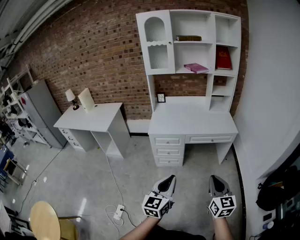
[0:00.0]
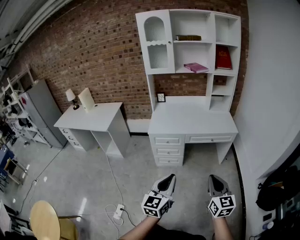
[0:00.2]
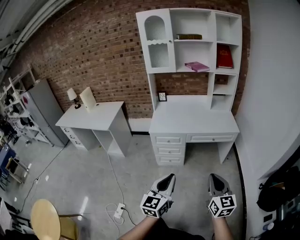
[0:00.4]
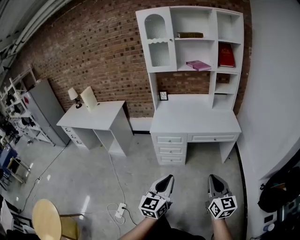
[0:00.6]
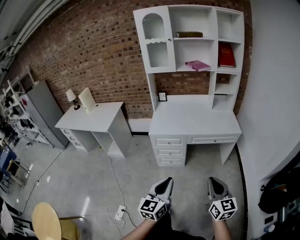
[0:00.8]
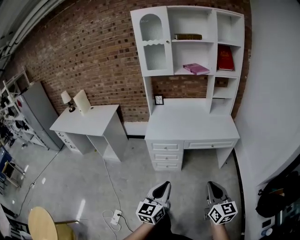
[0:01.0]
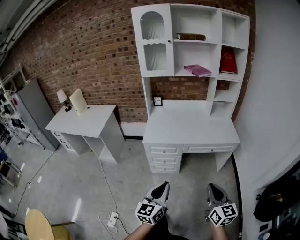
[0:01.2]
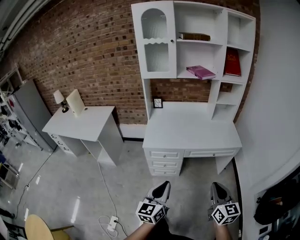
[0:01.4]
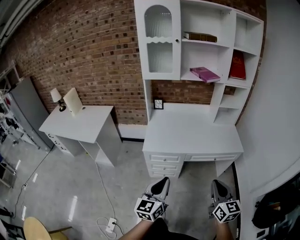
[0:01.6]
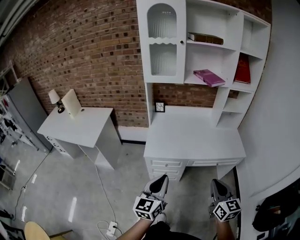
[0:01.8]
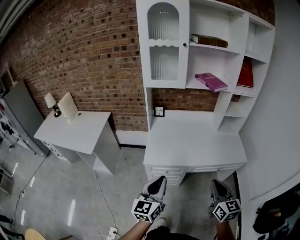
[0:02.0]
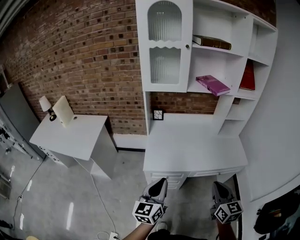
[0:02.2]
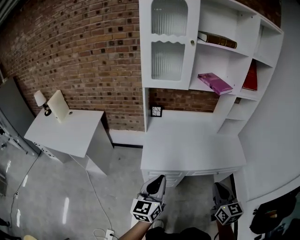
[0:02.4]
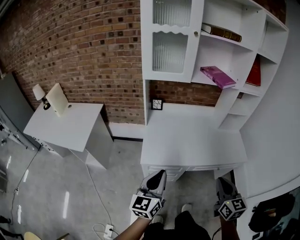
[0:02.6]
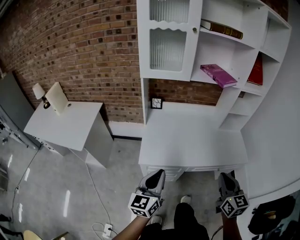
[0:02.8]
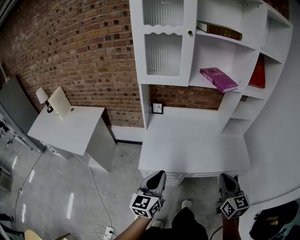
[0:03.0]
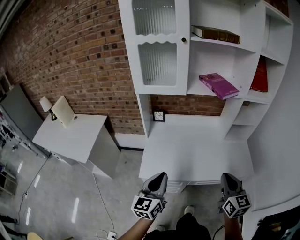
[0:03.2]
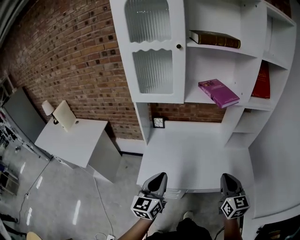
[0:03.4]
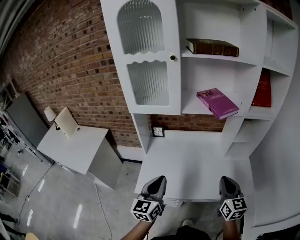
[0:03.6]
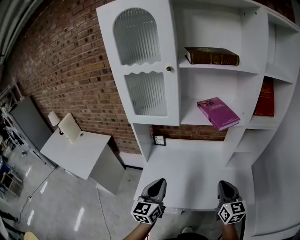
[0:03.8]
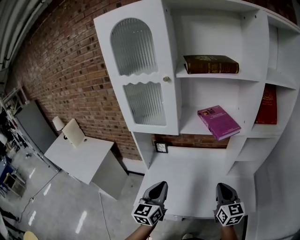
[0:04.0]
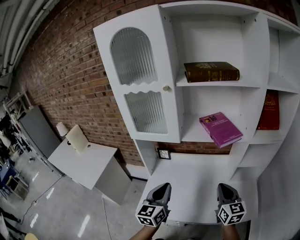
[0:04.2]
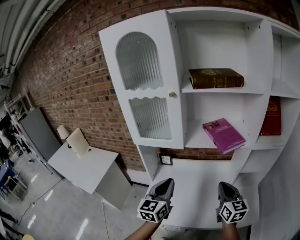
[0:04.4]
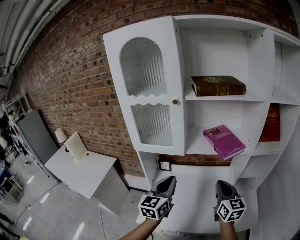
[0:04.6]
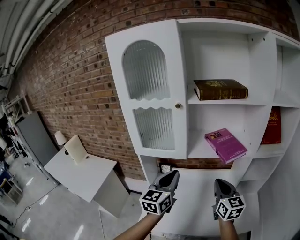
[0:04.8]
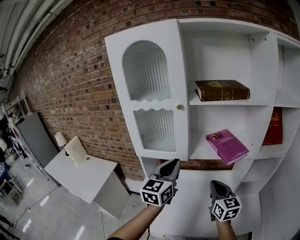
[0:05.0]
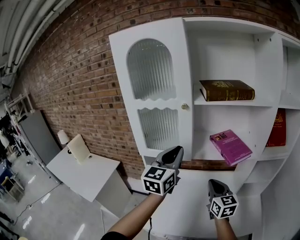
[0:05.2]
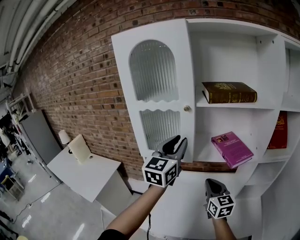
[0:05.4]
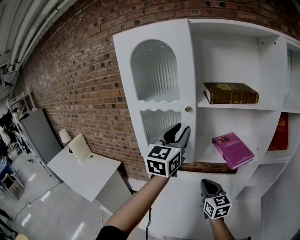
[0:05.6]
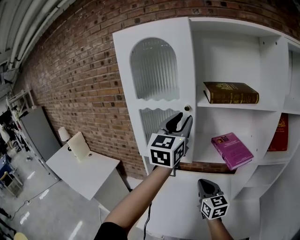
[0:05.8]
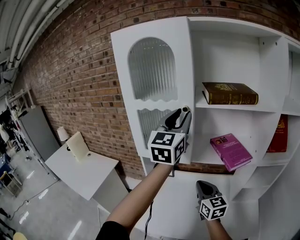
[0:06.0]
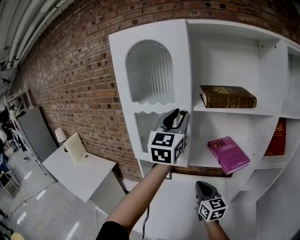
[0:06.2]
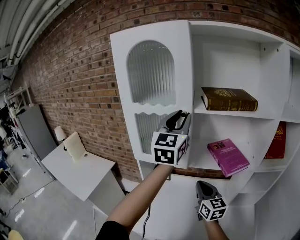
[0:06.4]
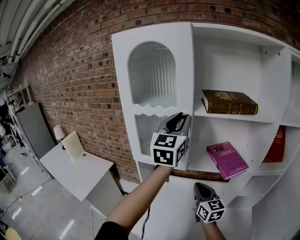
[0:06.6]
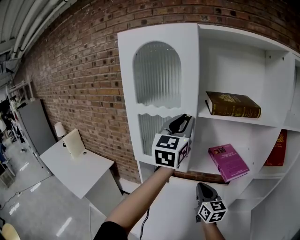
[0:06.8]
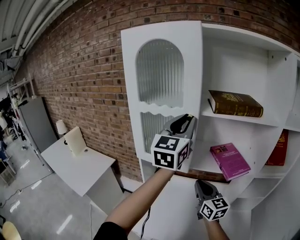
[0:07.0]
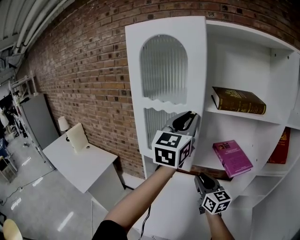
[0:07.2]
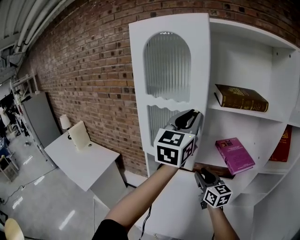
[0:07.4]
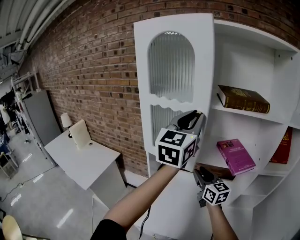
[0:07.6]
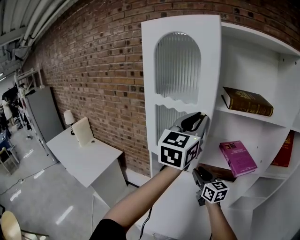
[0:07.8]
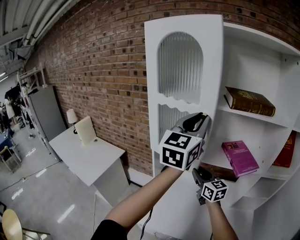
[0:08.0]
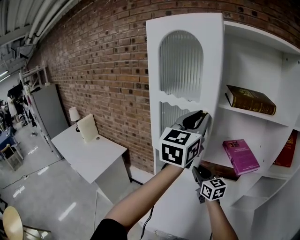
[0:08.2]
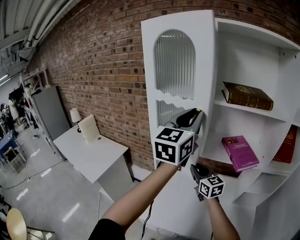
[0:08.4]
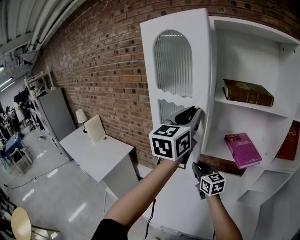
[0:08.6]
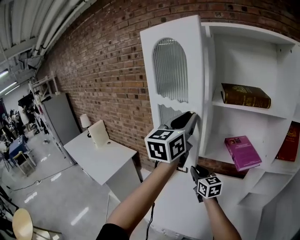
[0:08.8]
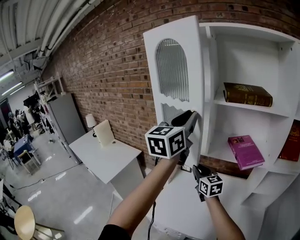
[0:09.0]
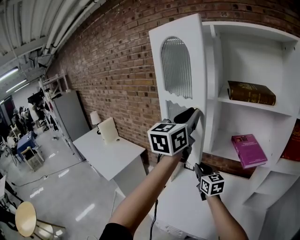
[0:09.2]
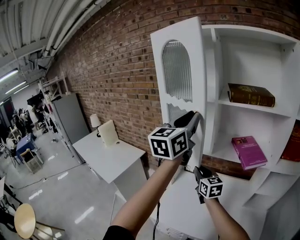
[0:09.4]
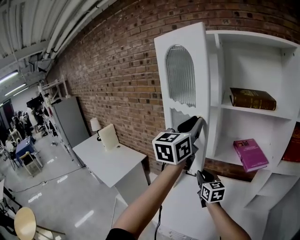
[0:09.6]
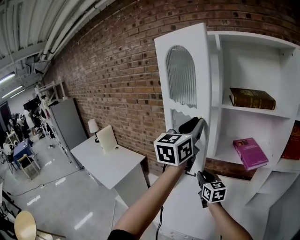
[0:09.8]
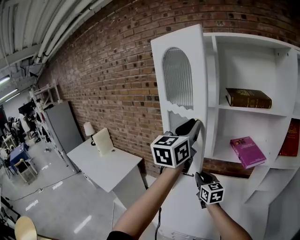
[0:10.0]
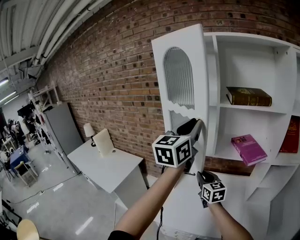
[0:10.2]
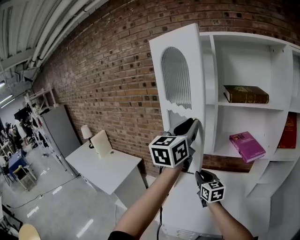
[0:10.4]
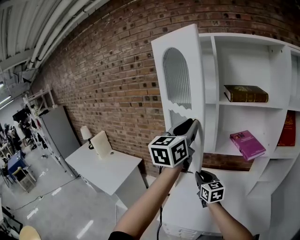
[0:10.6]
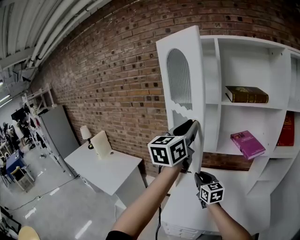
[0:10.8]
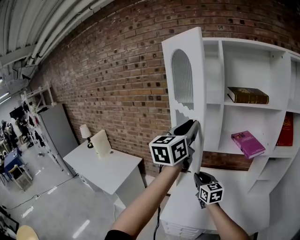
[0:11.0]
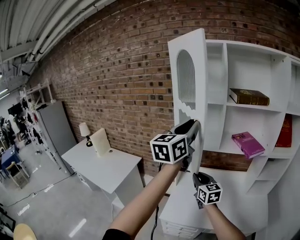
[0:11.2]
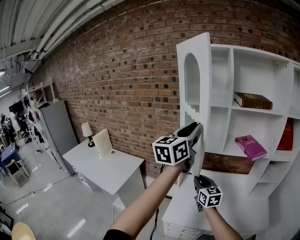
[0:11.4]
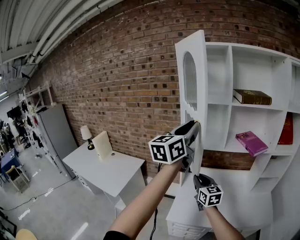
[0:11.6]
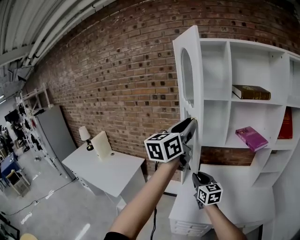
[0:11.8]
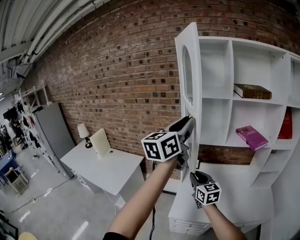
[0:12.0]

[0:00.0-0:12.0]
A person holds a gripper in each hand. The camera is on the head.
0:00.0 to 0:01.6: Both grippers move forward, about 25 cm.
0:01.6 to 0:03.0: Both grippers move forward, about 25 cm.
0:03.0 to 0:04.4: The right gripper shifts roughly 30 cm forward; the left gripper shifts approximately 30 cm forward, upward and to the right.
0:04.4 to 0:06.0: The right gripper goes some 15 cm to the left and forward. Meanwhile the left gripper moves upward and forward, roughly 35 cm, rotates some 20 degrees, and opens up.
0:06.0 to 0:07.6: The right gripper travels forward by roughly 5 cm, and opens its fingers.
0:07.6 to 0:09.0: The right gripper shifts by about 5 cm.
0:09.0 to 0:10.4: The left gripper ends up roughly 5 cm from where it was. Meanwhile the right gripper ends up roughly 5 cm from where it was.
0:10.4 to 0:12.0: Both grippers move to the left and backward, roughly 15 cm.

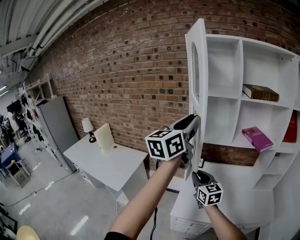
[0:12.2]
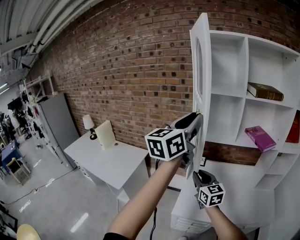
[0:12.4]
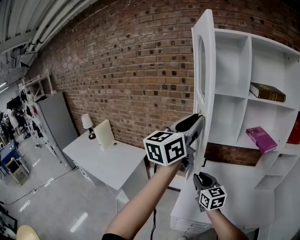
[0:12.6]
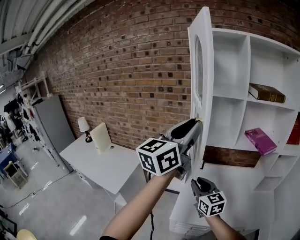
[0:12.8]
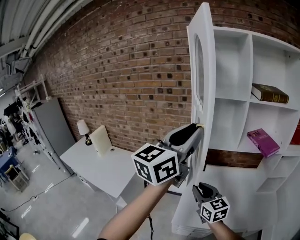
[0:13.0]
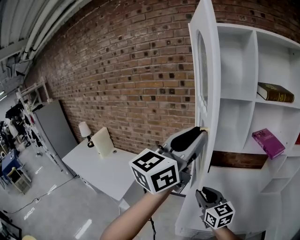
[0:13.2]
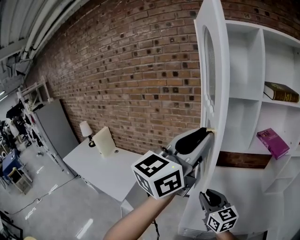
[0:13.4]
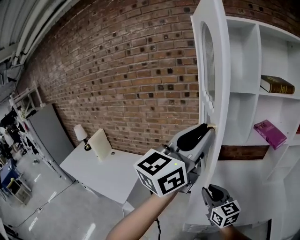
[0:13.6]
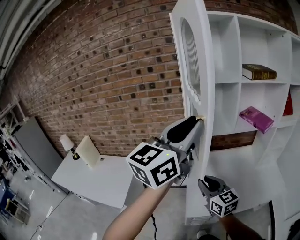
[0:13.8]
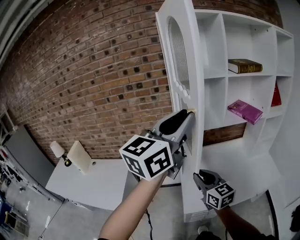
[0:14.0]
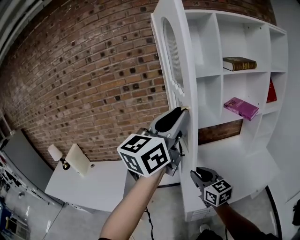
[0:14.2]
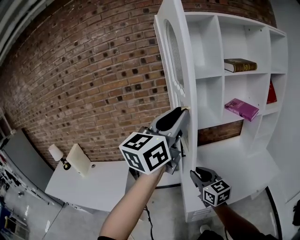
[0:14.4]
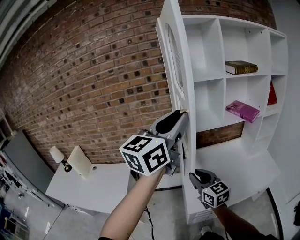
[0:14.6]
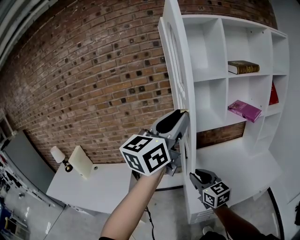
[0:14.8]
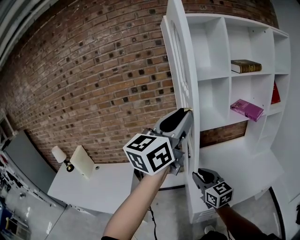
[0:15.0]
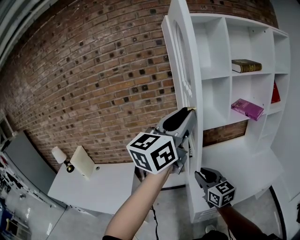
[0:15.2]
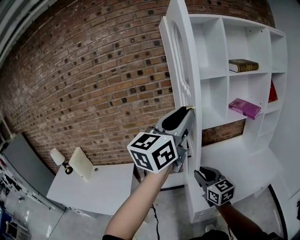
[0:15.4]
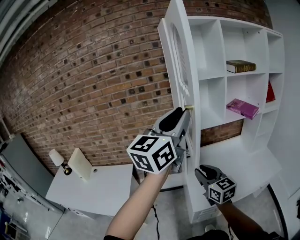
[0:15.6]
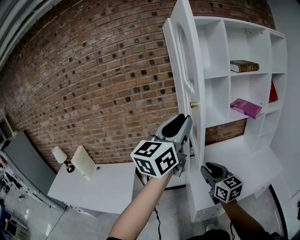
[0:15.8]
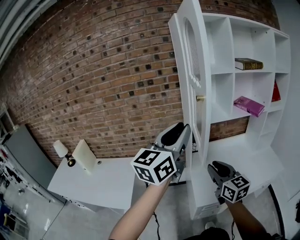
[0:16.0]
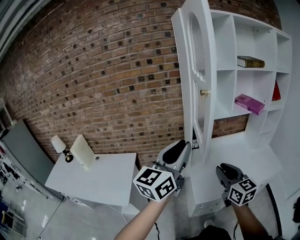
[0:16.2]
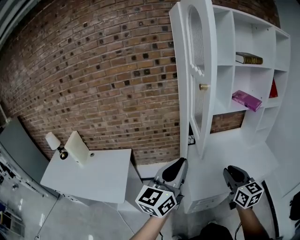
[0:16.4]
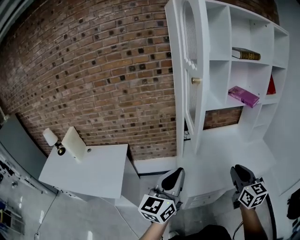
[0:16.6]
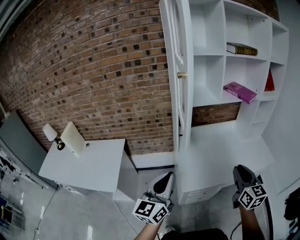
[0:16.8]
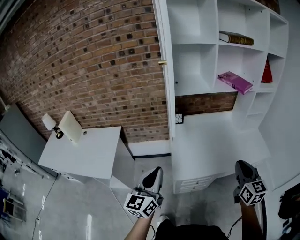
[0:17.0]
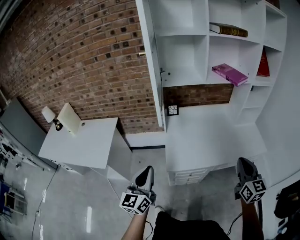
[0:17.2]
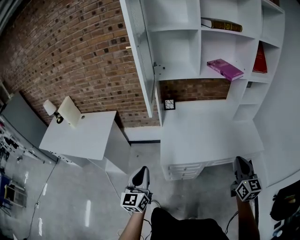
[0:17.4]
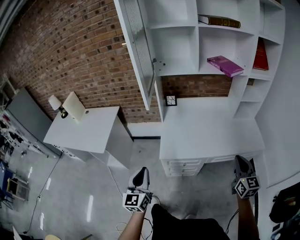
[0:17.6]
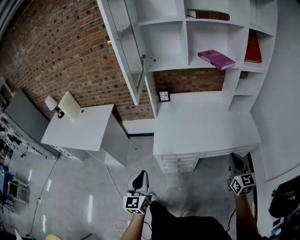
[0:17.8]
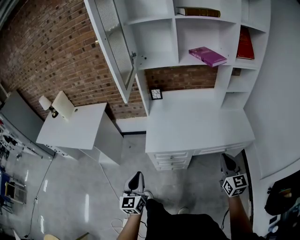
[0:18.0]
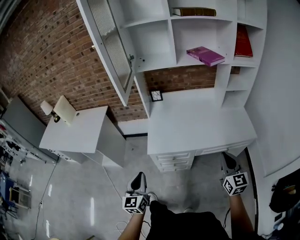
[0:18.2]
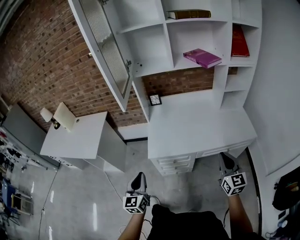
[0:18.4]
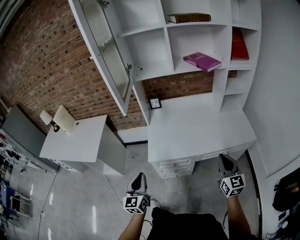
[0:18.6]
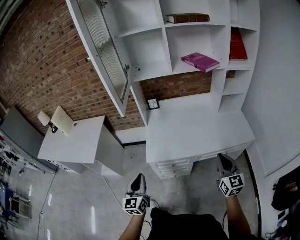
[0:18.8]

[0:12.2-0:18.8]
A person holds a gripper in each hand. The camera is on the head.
0:12.2 to 0:13.8: Both grippers move to the left, about 5 cm.
0:13.8 to 0:15.4: The right gripper ends up roughly 5 cm from where it was.
0:15.4 to 0:17.2: The left gripper moves downward and backward, approximately 40 cm, and swivels approximately 30 degrees. Meanwhile the right gripper goes approximately 35 cm to the right, and closes up.
0:17.2 to 0:18.8: The right gripper moves to the right and downward, about 15 cm. The left gripper moves downward, to the right and backward, about 15 cm.

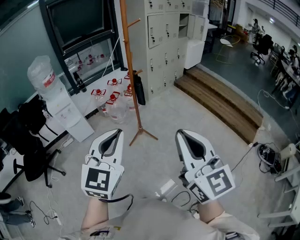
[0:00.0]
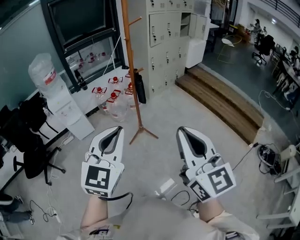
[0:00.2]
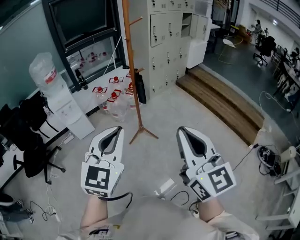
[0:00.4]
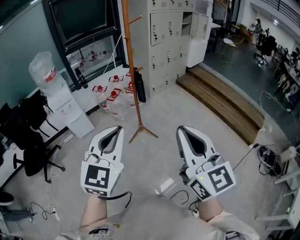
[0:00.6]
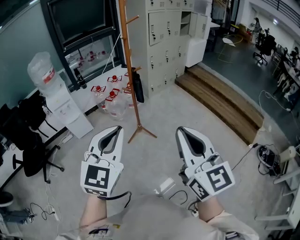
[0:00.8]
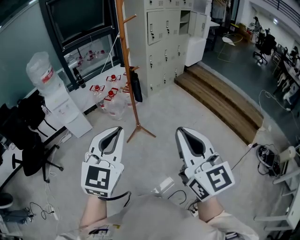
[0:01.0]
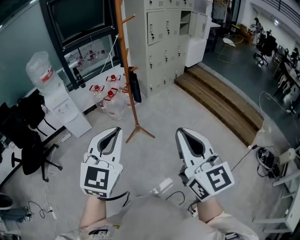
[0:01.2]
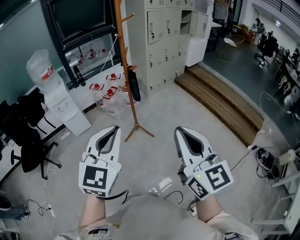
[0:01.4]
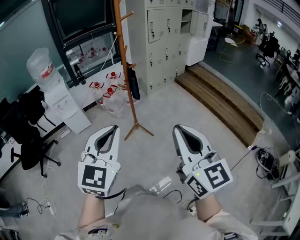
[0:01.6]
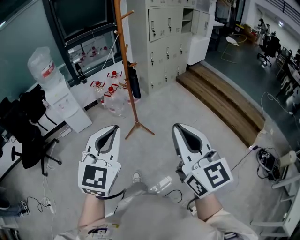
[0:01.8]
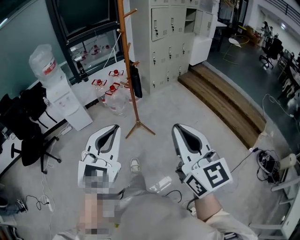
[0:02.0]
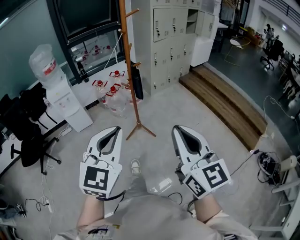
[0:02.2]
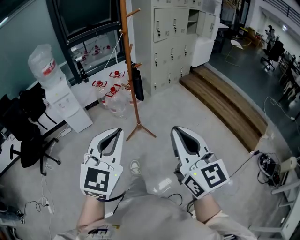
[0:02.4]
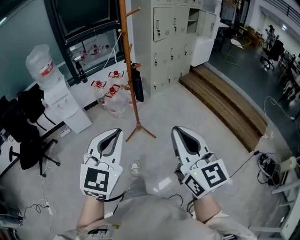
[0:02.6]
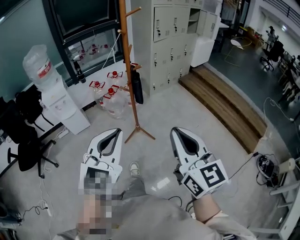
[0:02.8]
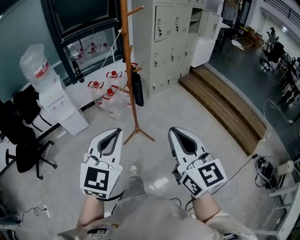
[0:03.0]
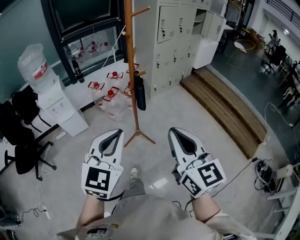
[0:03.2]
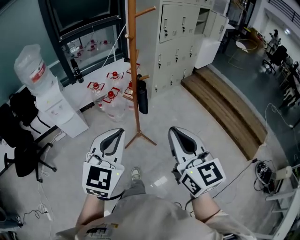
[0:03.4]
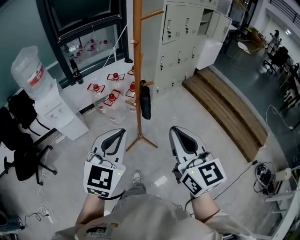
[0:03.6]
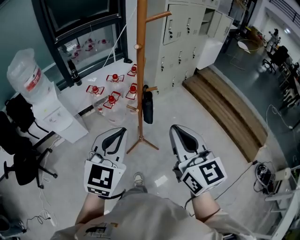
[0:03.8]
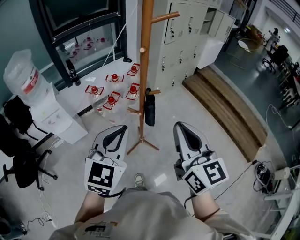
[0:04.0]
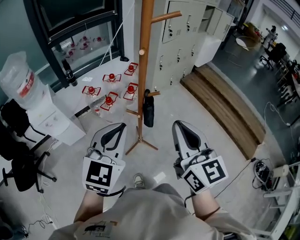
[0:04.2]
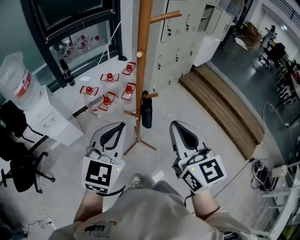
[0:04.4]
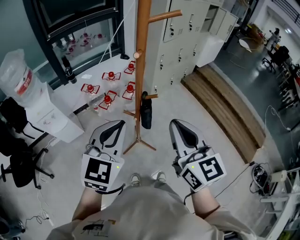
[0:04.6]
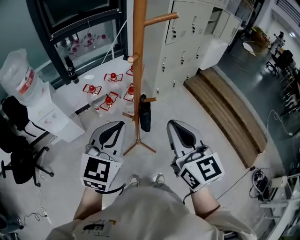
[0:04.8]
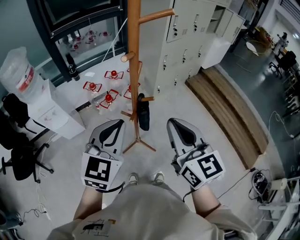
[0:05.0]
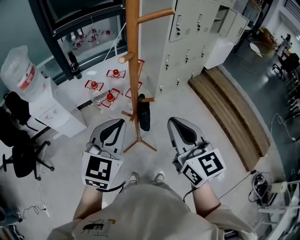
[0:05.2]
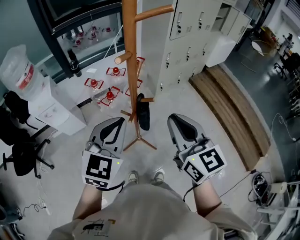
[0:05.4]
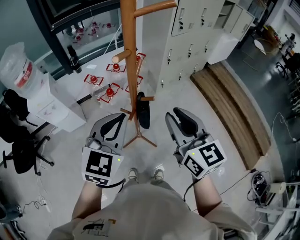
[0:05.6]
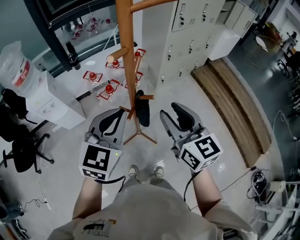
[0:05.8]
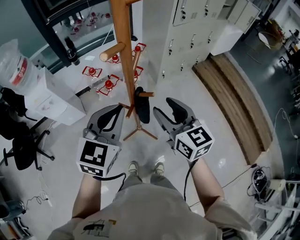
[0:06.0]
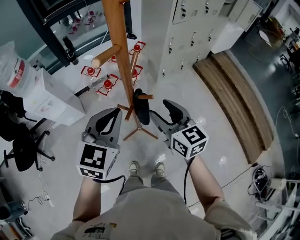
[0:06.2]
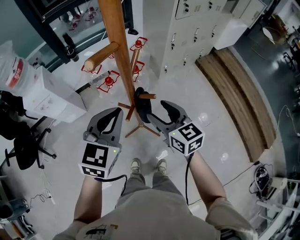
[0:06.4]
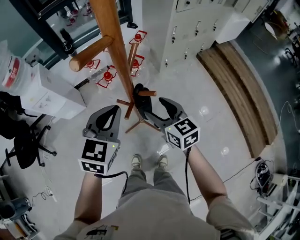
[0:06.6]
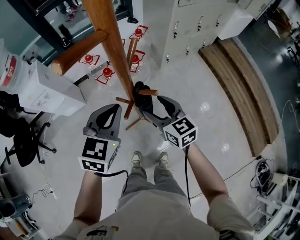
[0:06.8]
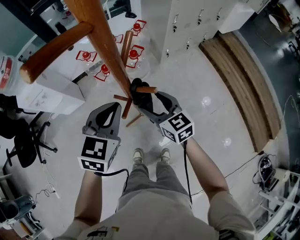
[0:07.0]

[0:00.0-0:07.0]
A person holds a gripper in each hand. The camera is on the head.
0:00.0 to 0:01.4: The grippers both shift to the right by about 5 cm.
0:01.4 to 0:02.8: The left gripper is displaced forward by some 10 cm. Meanwhile the right gripper moves forward and downward, approximately 10 cm.
0:02.8 to 0:04.2: Both grippers travel together forward, about 35 cm.
0:04.2 to 0:05.6: The two grippers go some 15 cm forward and to the right.
0:05.6 to 0:07.0: The right gripper moves downward and forward, roughly 30 cm, swivels roughly 20 degrees, and opens its fingers; the left gripper heads downward and forward, covering approximately 20 cm.
